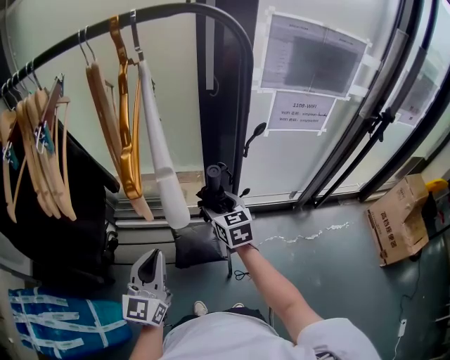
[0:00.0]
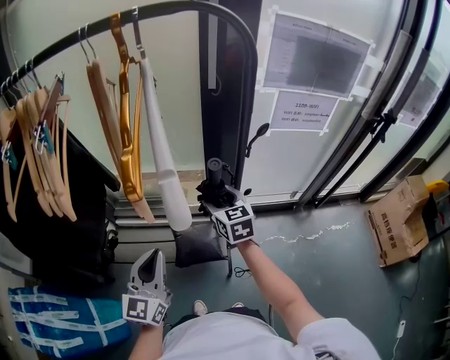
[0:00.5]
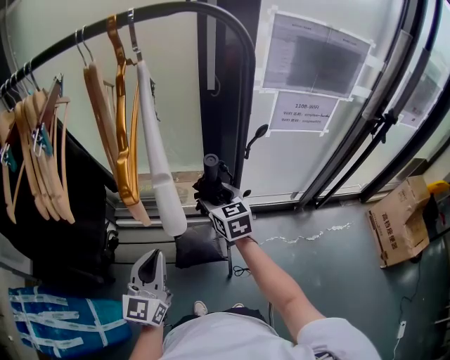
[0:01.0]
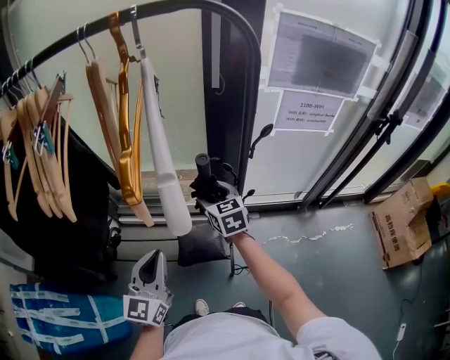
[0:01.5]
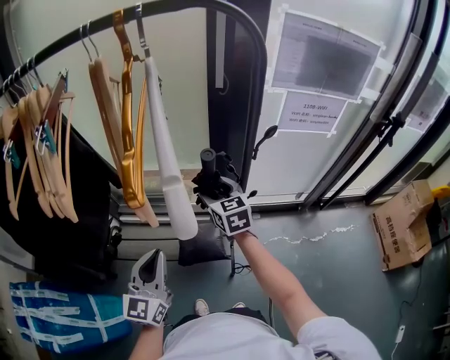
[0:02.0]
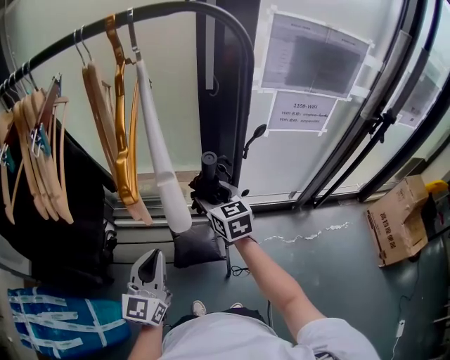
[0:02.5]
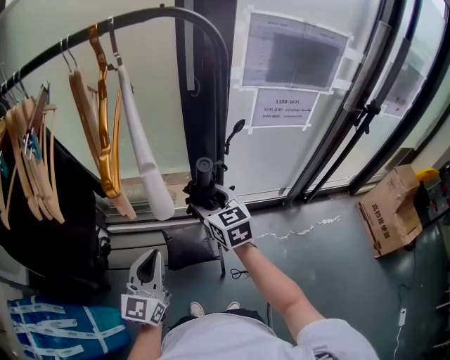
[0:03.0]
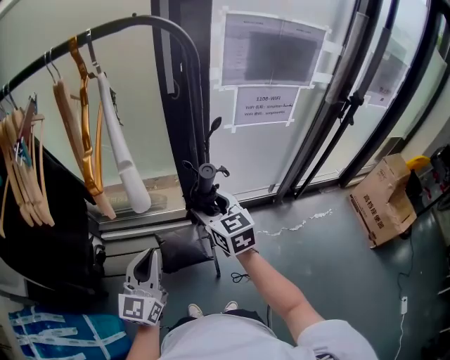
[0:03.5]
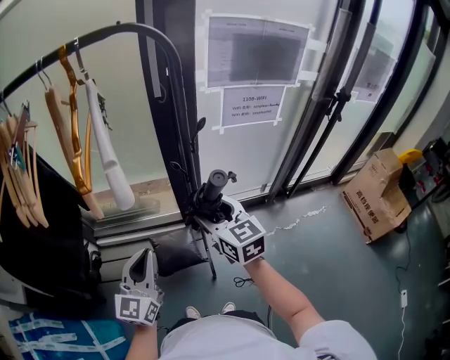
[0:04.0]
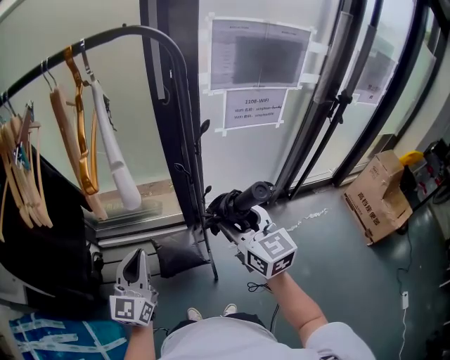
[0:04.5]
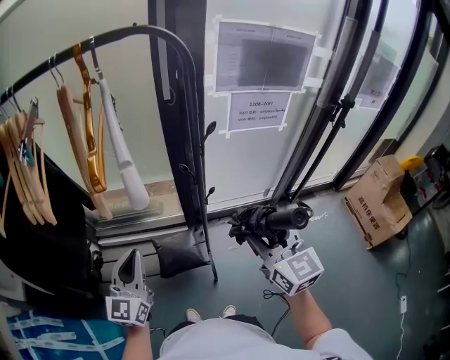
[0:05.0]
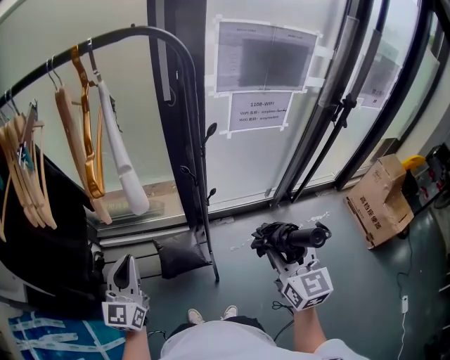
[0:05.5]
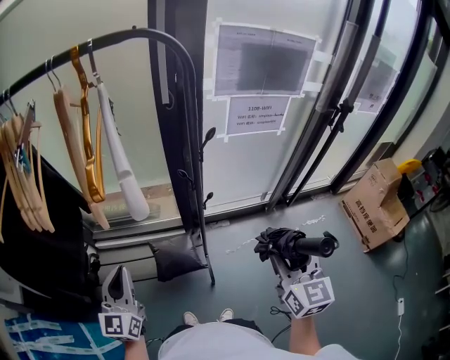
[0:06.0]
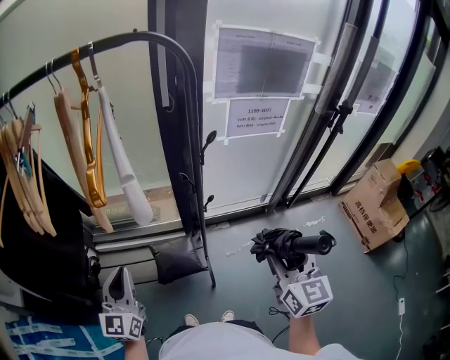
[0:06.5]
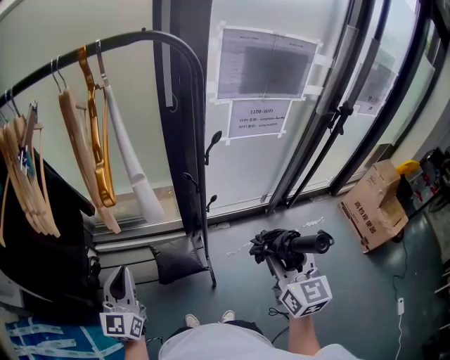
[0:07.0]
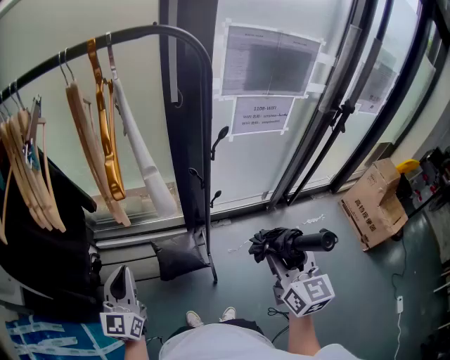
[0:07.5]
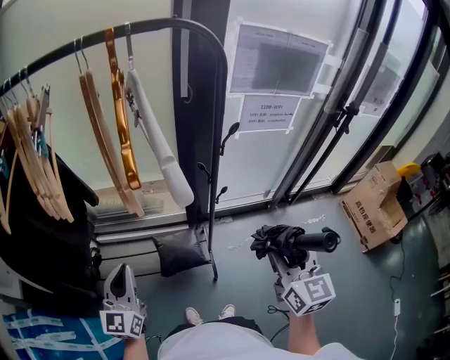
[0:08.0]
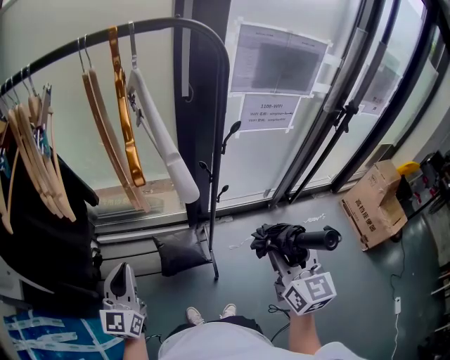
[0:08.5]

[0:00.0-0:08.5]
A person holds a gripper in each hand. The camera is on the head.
0:00.0 to 0:02.0: The right gripper moves about 5 cm.
0:02.0 to 0:04.0: The right gripper moves backward, to the right and upward, roughly 20 cm. Meanwhile the left gripper shifts some 5 cm to the right.
0:04.0 to 0:06.5: The left gripper travels to the left by approximately 10 cm, while the right gripper goes approximately 20 cm to the right and backward, and changes its angle by approximately 20 degrees.
0:06.5 to 0:08.5: The right gripper shifts about 5 cm to the left, while the left gripper shifts by roughly 5 cm.

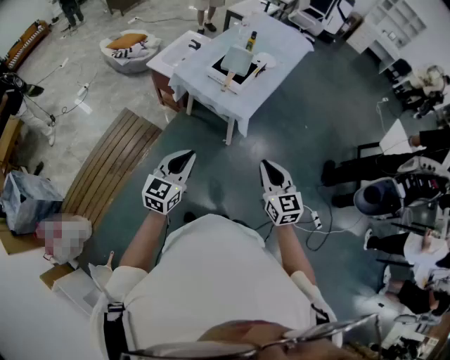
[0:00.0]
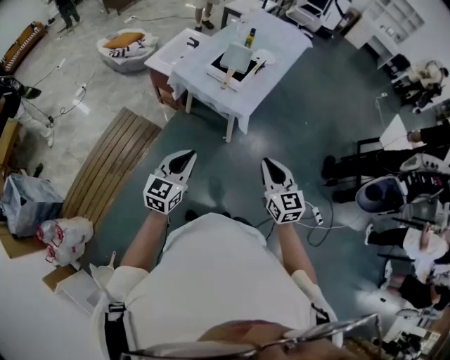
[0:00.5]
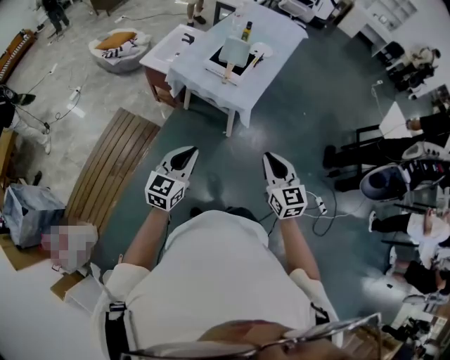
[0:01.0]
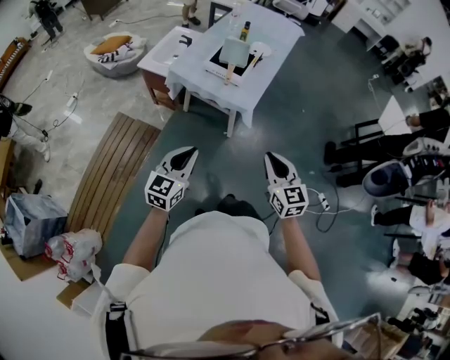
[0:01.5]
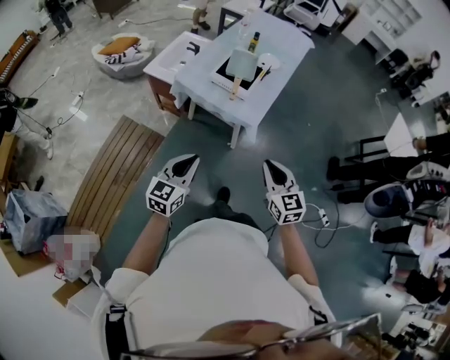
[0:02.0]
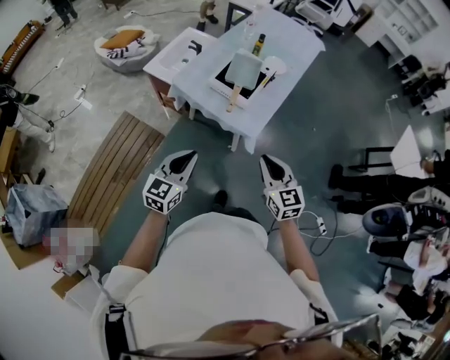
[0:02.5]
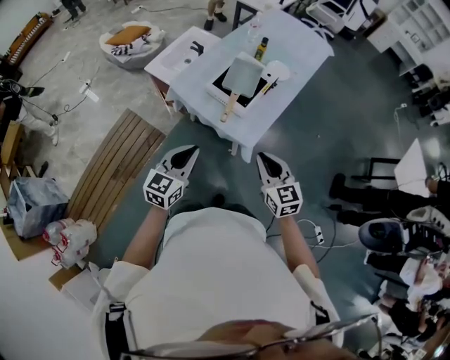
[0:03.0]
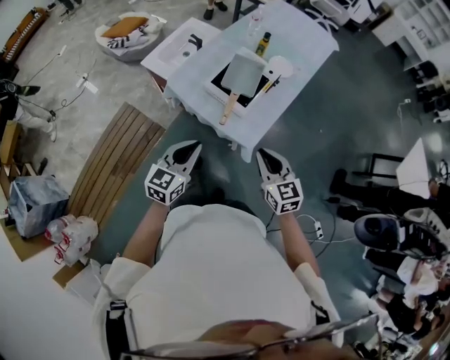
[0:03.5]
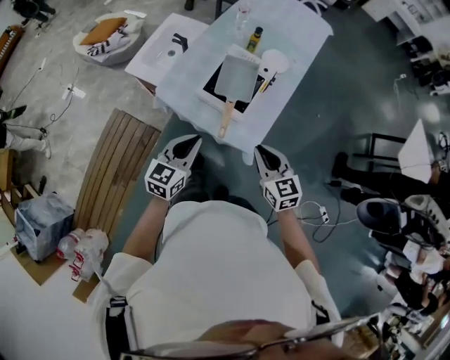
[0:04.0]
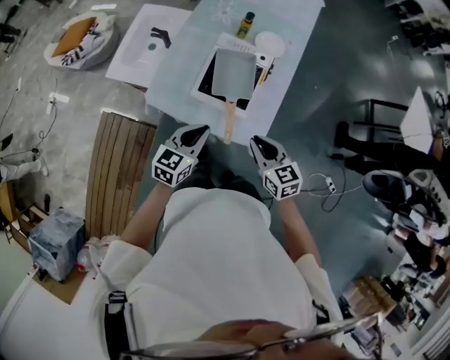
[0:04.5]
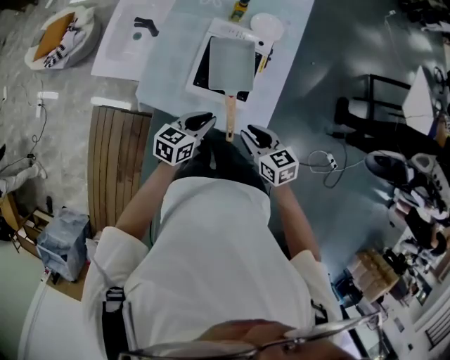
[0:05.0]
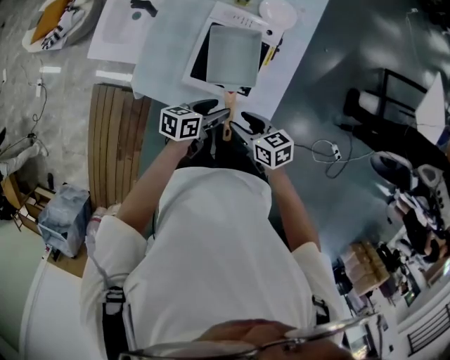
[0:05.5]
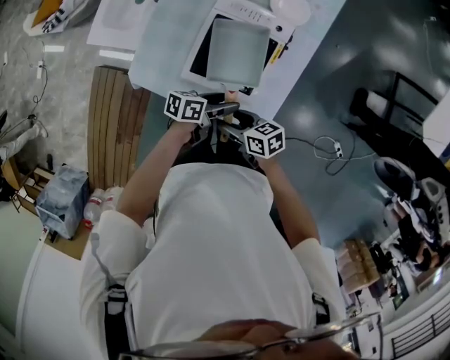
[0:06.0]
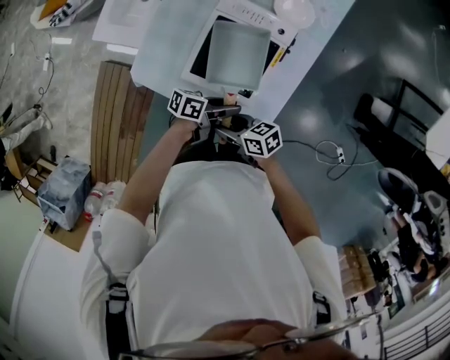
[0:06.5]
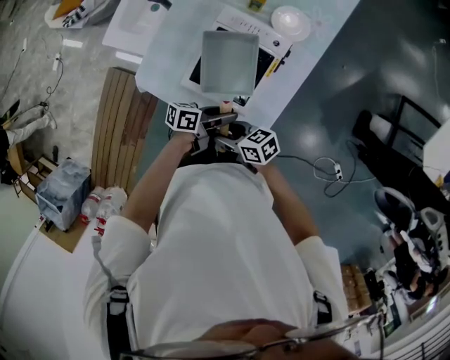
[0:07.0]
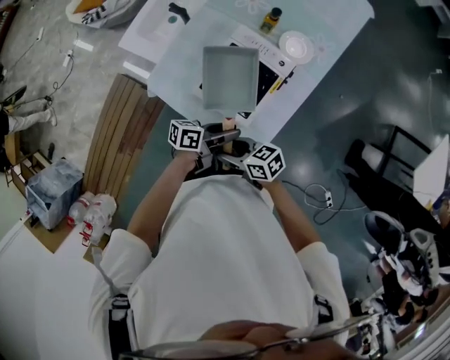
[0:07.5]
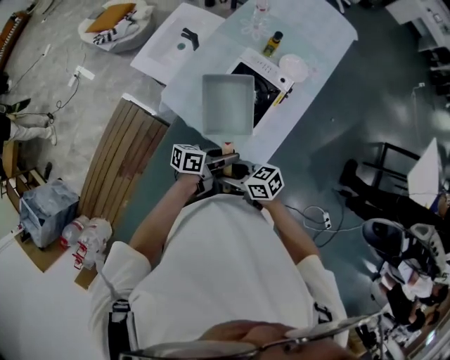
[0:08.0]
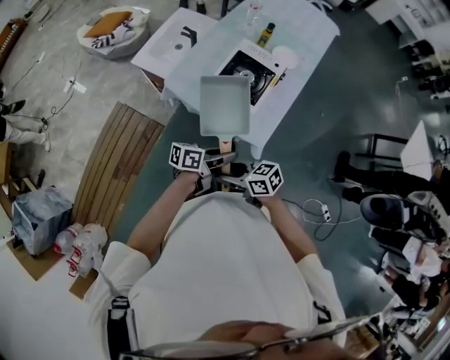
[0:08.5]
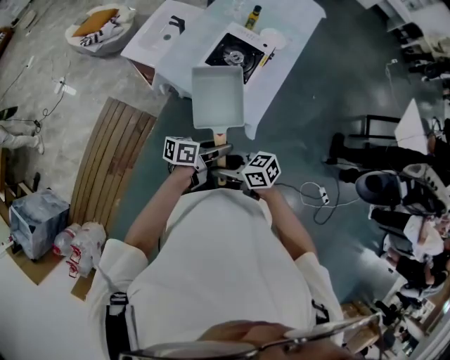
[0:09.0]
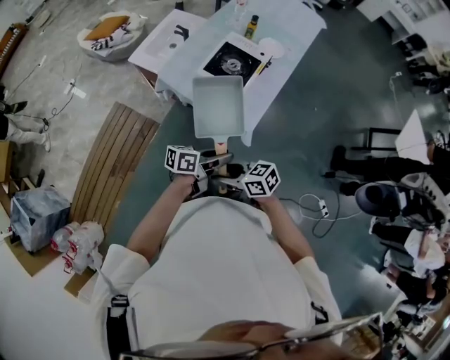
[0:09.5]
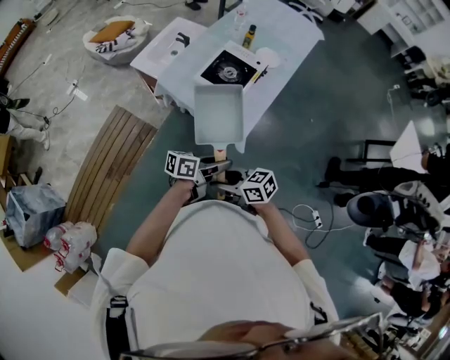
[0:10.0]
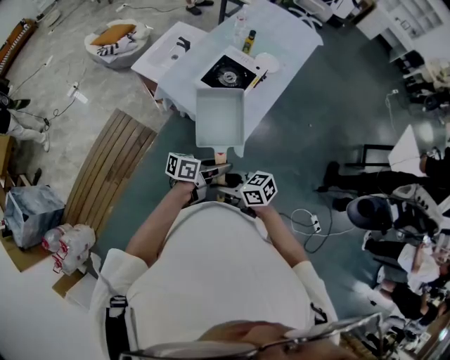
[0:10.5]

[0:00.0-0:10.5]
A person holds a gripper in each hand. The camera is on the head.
0:00.0 to 0:02.0: The grippers both shift to the left and forward by approximately 10 cm.
0:02.0 to 0:04.0: The two grippers go roughly 35 cm forward.
0:04.0 to 0:06.5: The two grippers go some 25 cm downward. The right gripper swivels some 50 degrees, and opens its fingers. The left gripper rotates some 70 degrees, and opens.
0:06.5 to 0:08.5: The right gripper ends up approximately 25 cm from where it was, and rotates about 20 degrees; the left gripper changes place by roughly 25 cm, and turns by roughly 20 degrees.
0:08.5 to 0:10.5: The left gripper ends up approximately 15 cm from where it was; the right gripper ends up roughly 15 cm from where it was.

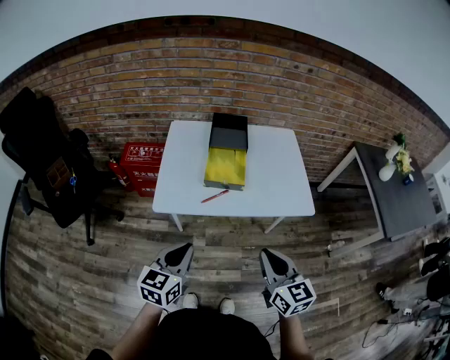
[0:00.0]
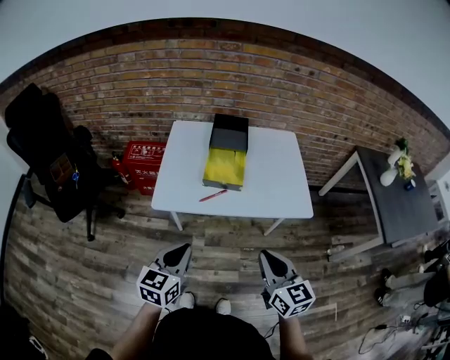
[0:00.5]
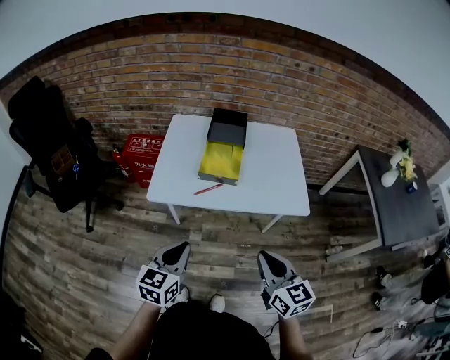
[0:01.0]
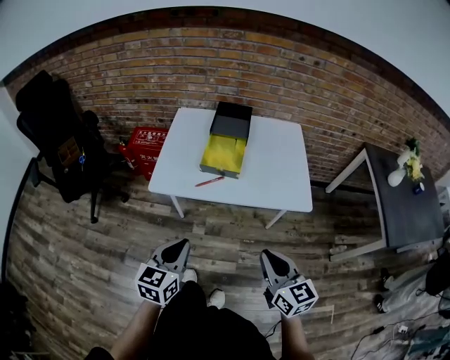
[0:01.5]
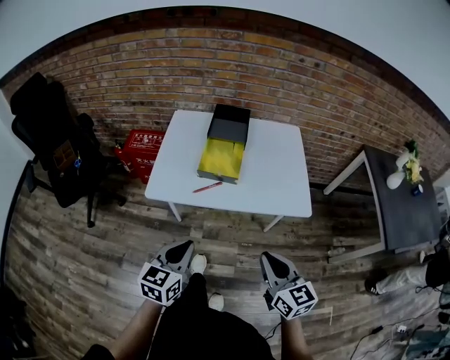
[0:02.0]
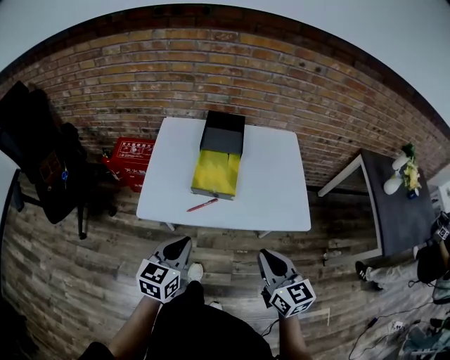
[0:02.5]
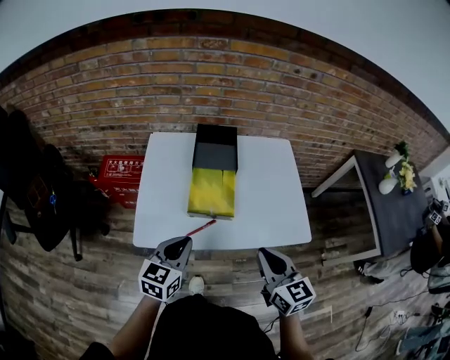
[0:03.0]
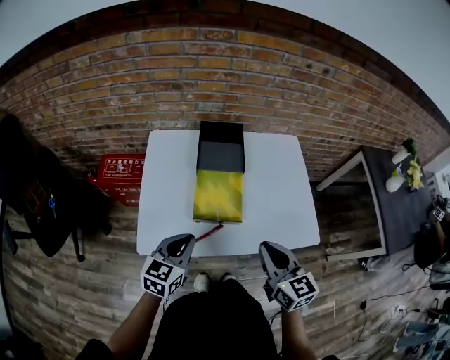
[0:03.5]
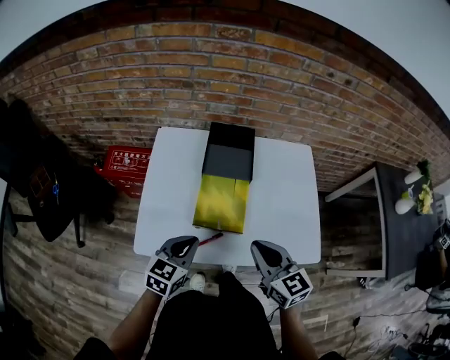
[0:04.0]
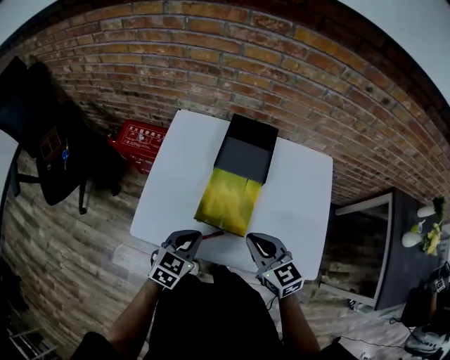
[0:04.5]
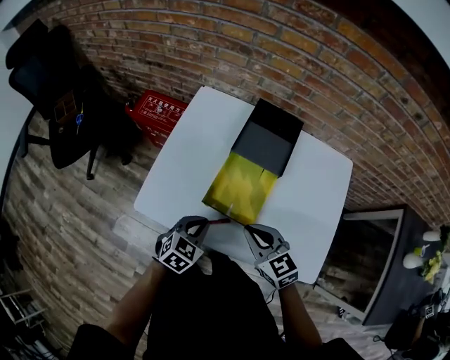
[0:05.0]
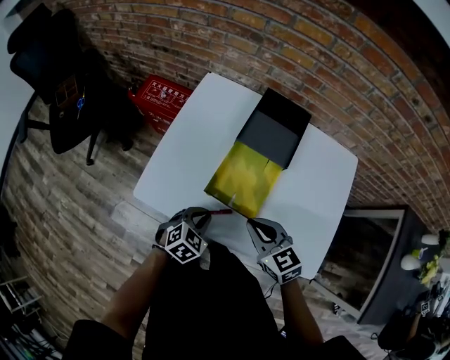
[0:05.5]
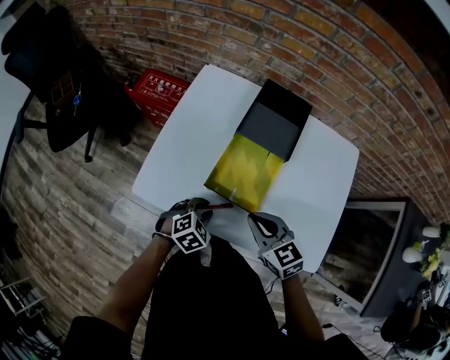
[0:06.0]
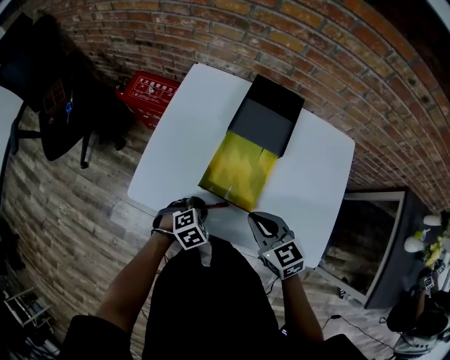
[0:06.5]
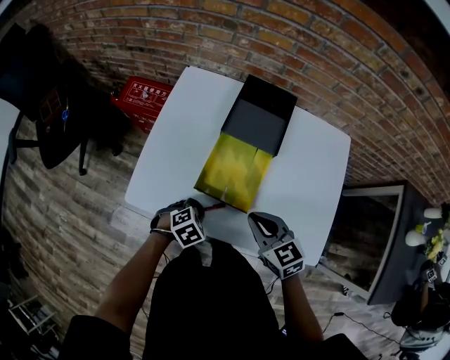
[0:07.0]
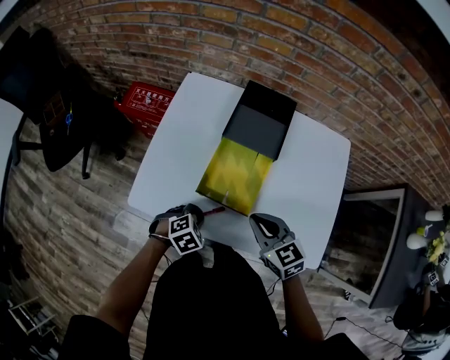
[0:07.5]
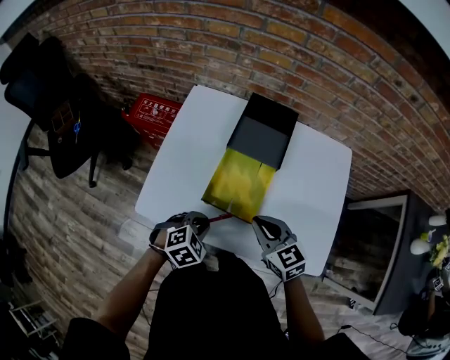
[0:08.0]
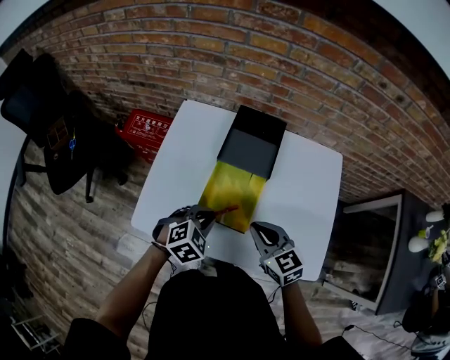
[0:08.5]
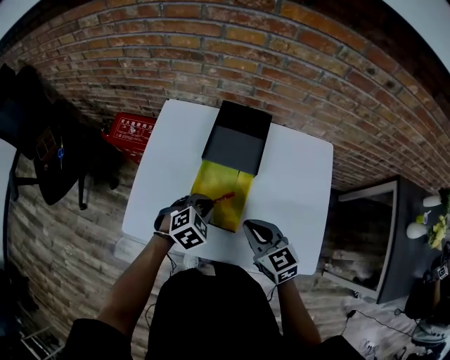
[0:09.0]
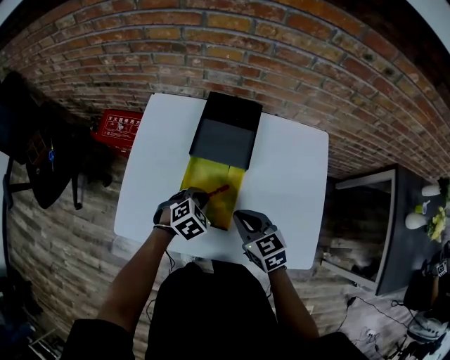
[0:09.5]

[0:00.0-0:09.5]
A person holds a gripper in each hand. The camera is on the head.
0:00.0 to 0:02.0: The two grippers go some 5 cm to the right.
0:02.0 to 0:04.0: The two grippers go roughly 30 cm forward.
0:04.0 to 0:05.5: The two grippers go approximately 10 cm downward. The right gripper rotates some 30 degrees, while the left gripper swivels approximately 30 degrees.
0:05.5 to 0:07.5: The left gripper changes its angle by some 20 degrees.
0:07.5 to 0:09.5: The left gripper is displaced forward and to the right by some 15 cm, while the right gripper goes roughly 5 cm forward.
